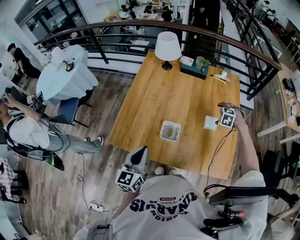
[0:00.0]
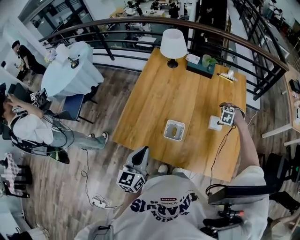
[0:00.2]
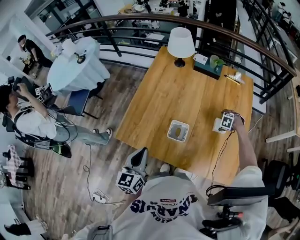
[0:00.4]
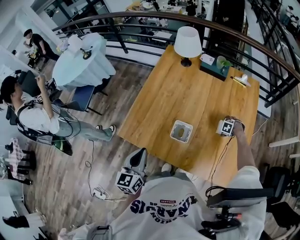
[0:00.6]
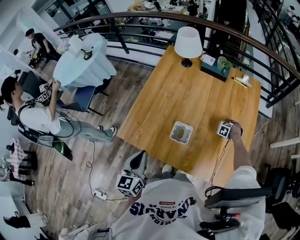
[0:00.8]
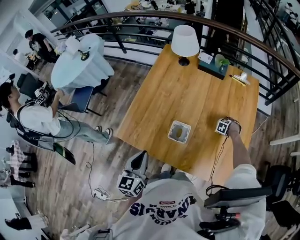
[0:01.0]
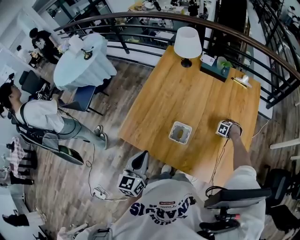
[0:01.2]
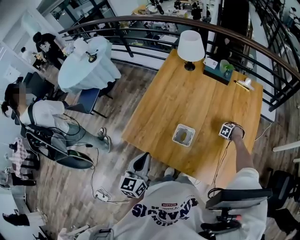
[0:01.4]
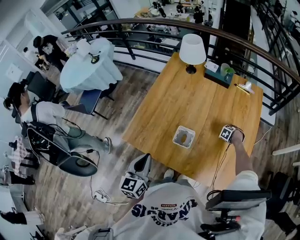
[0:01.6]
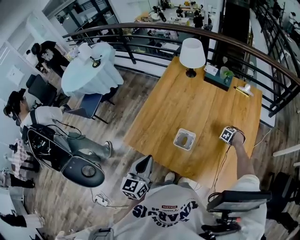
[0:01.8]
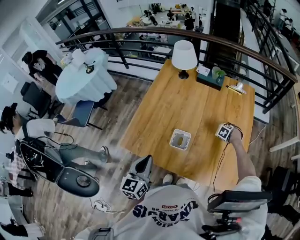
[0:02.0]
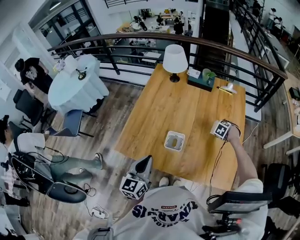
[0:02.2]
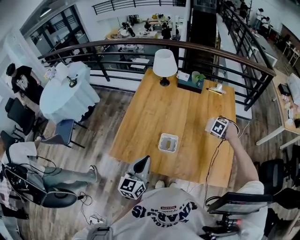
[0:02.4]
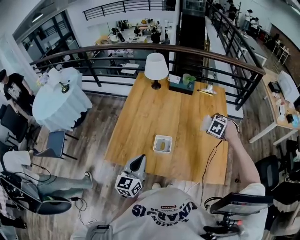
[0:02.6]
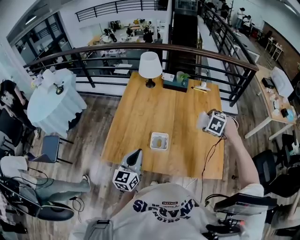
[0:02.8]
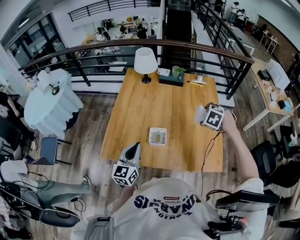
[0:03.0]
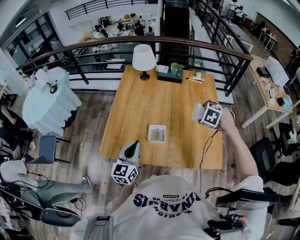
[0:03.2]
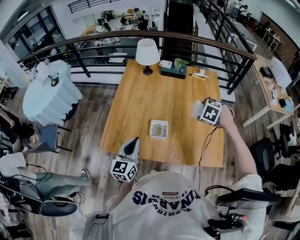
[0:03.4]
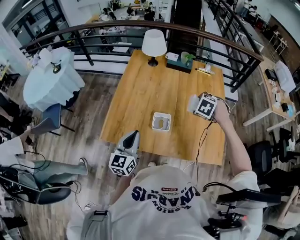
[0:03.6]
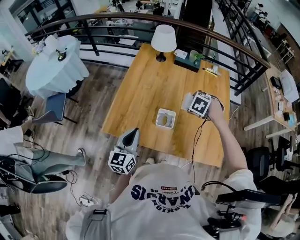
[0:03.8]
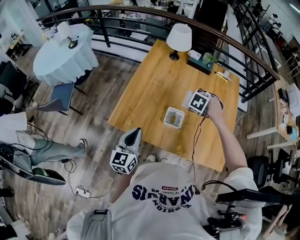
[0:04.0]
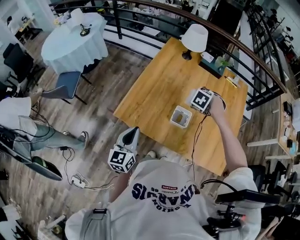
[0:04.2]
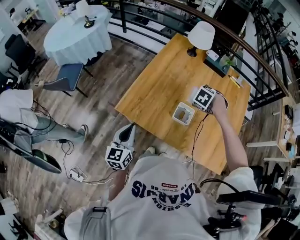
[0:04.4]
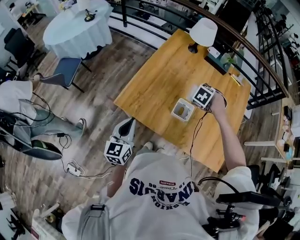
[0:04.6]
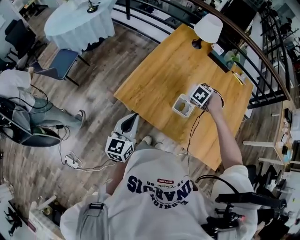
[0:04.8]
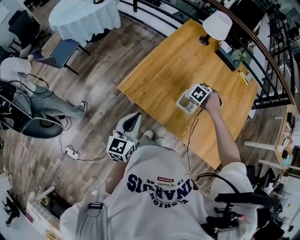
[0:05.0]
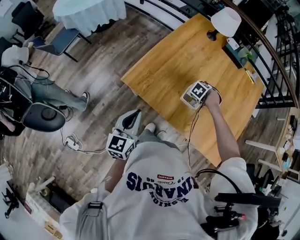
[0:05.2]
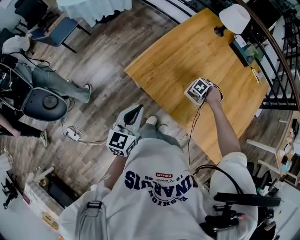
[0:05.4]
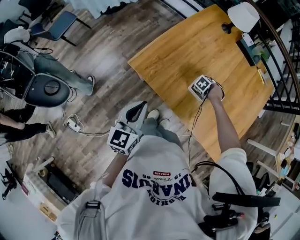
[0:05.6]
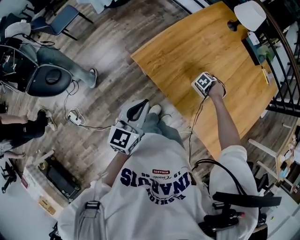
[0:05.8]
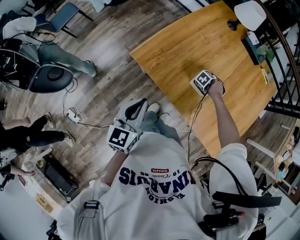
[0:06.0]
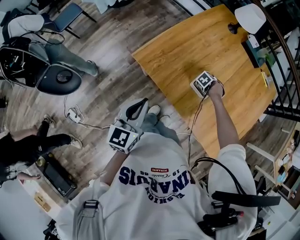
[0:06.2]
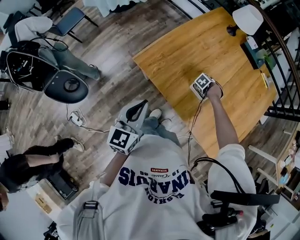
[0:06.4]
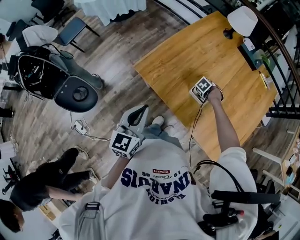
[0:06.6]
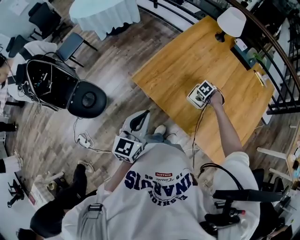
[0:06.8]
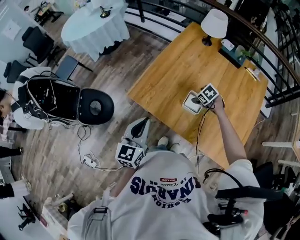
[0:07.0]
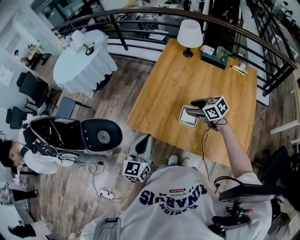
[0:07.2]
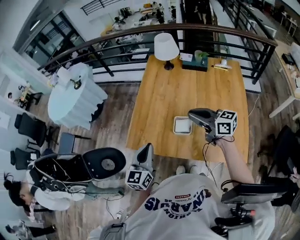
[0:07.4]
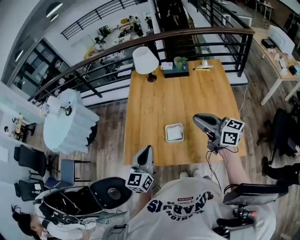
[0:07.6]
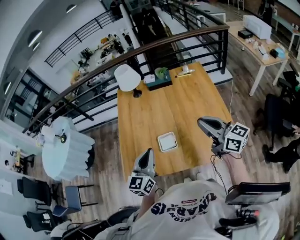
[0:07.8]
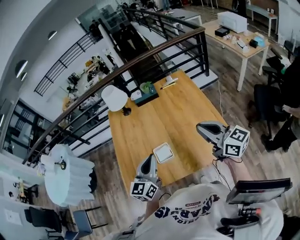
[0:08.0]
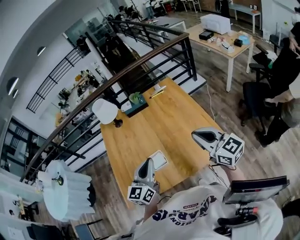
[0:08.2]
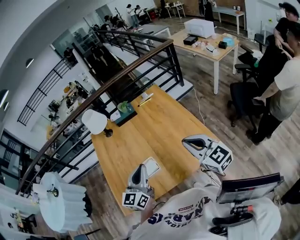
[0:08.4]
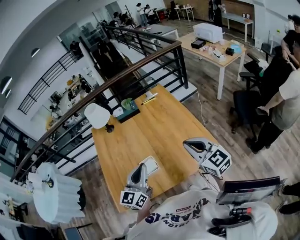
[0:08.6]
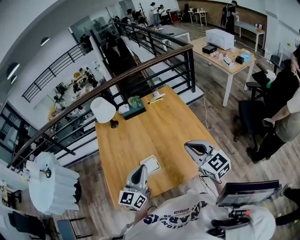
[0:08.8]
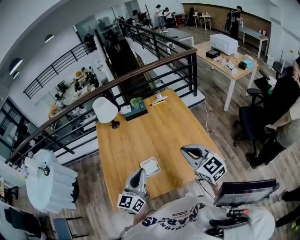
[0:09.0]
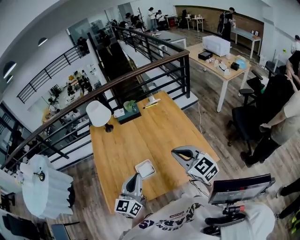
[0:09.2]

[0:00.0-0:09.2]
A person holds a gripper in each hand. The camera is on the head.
0:00.0 to 0:01.6: The right gripper shifts some 20 cm downward.
0:01.6 to 0:03.0: The left gripper swivels roughly 20 degrees. The right gripper shifts some 35 cm upward, and swivels about 20 degrees.
0:03.0 to 0:04.6: The right gripper moves approximately 30 cm, while the left gripper moves about 15 cm, and swivels roughly 20 degrees.
0:04.6 to 0:06.2: The right gripper is displaced downward by some 25 cm. Meanwhile the left gripper ends up approximately 5 cm from where it was.
0:06.2 to 0:07.6: The right gripper is displaced upward by some 50 cm, points its fingers about 90 degrees further upward, and closes its fingers; the left gripper moves some 20 cm, and turns by some 30 degrees.
0:07.6 to 0:09.2: The right gripper turns by some 50 degrees. Meanwhile the left gripper swivels some 20 degrees.

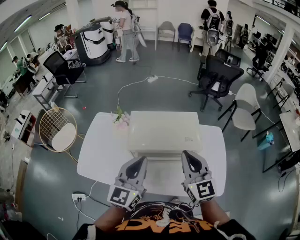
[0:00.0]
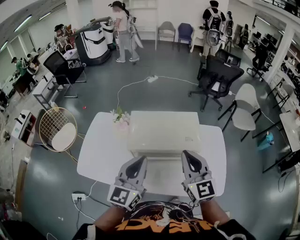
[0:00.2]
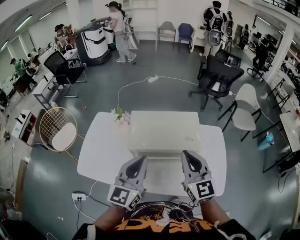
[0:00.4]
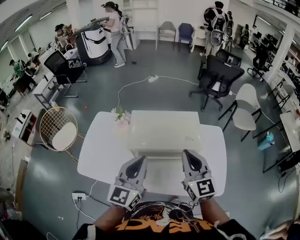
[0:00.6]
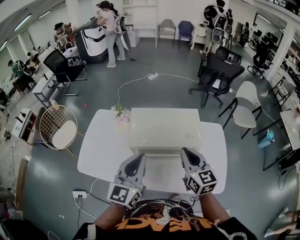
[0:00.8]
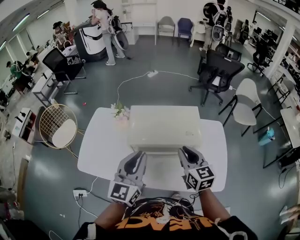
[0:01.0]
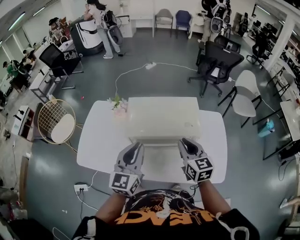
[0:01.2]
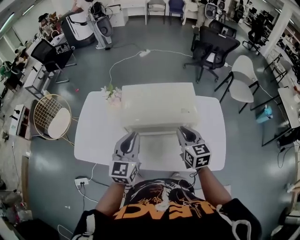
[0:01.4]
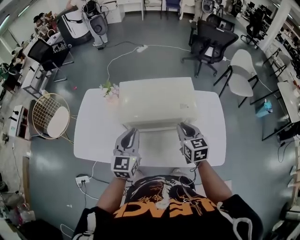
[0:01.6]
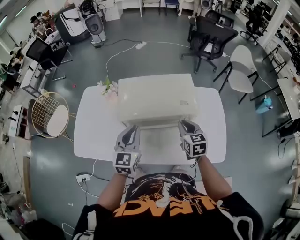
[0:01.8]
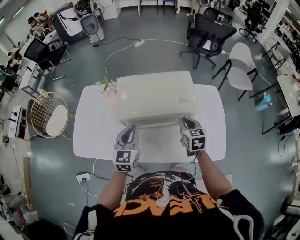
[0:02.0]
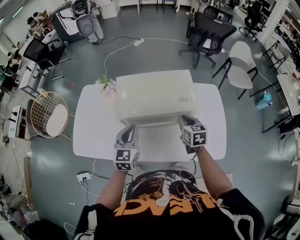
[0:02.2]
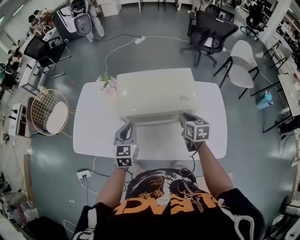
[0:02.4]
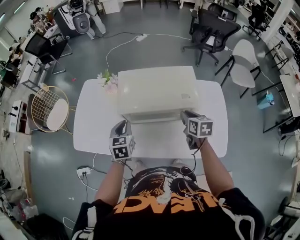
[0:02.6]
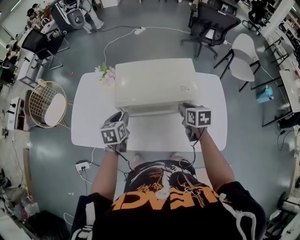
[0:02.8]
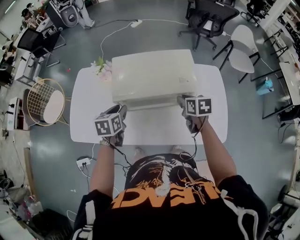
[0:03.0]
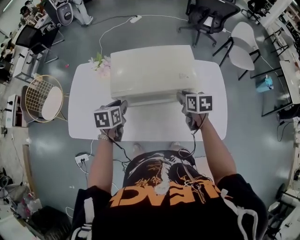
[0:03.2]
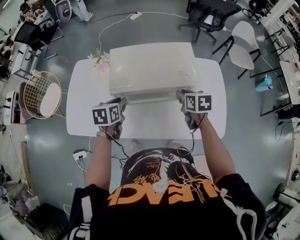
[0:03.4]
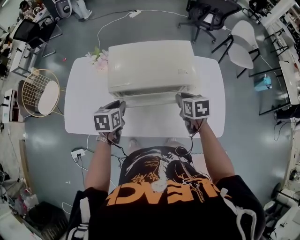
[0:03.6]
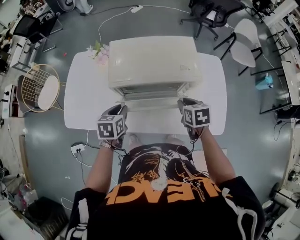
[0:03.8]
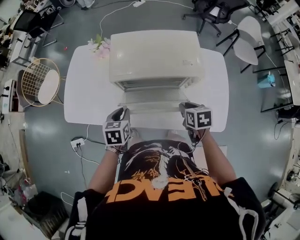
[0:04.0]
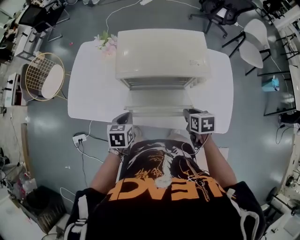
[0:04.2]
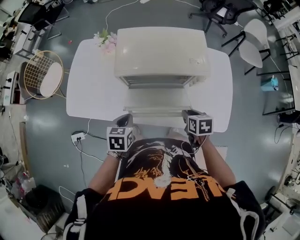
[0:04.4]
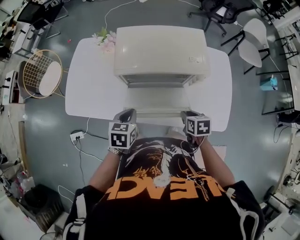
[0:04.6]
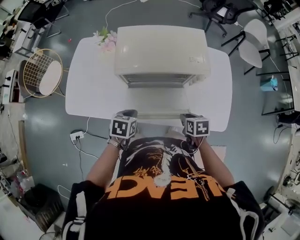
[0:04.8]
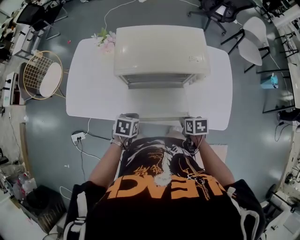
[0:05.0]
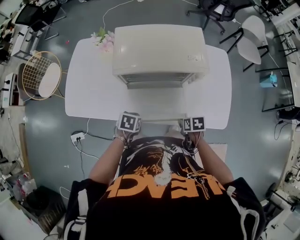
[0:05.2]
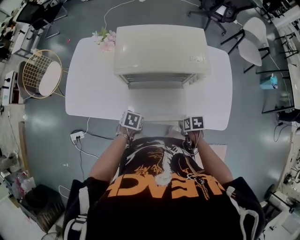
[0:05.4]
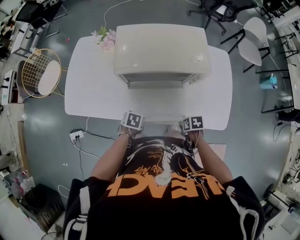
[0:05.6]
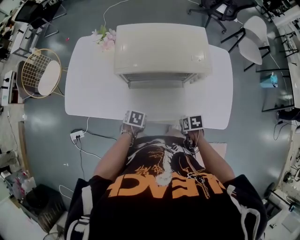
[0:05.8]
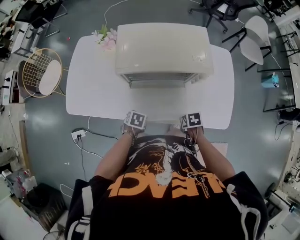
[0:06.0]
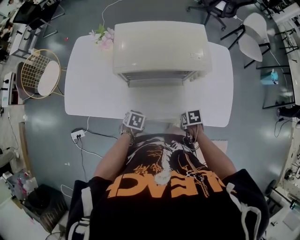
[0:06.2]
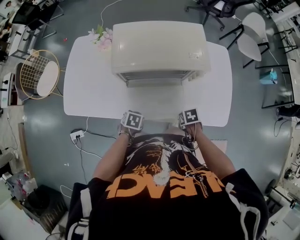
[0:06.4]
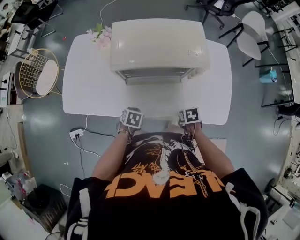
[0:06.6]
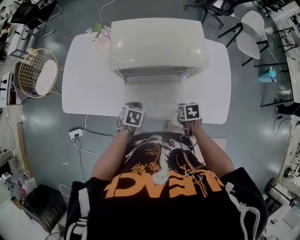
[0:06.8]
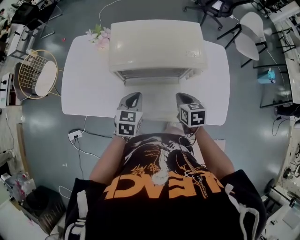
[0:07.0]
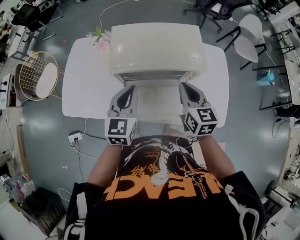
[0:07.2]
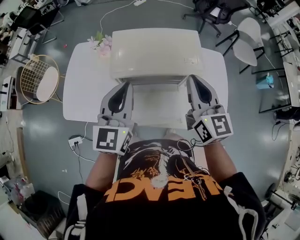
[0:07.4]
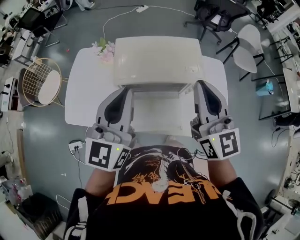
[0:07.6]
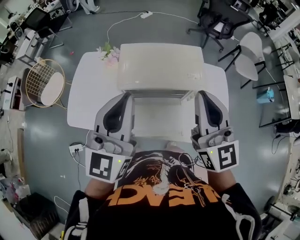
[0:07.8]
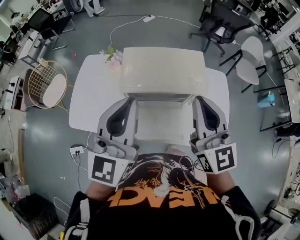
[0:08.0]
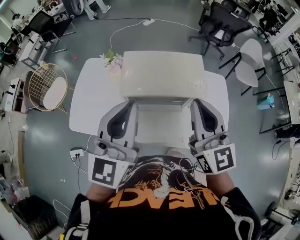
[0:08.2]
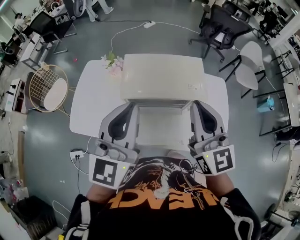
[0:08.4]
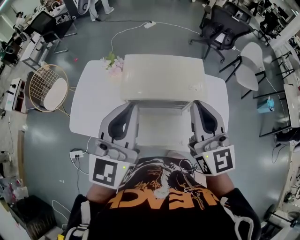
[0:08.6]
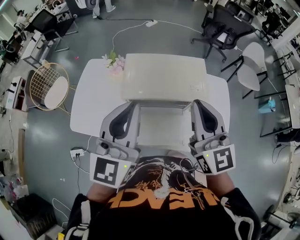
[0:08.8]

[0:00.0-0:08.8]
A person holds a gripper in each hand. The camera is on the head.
0:00.0 to 0:01.4: Both grippers travel together downward, approximately 10 cm. The right gripper turns by some 20 degrees.
0:01.4 to 0:03.0: The right gripper is displaced downward by approximately 10 cm, and changes its angle by approximately 30 degrees, while the left gripper goes approximately 15 cm downward and forward, and tips its fingers downward by some 30 degrees.
0:03.0 to 0:04.4: Both grippers move backward and downward, about 15 cm. The left gripper closes its fingers.
0:04.4 to 0:05.8: Both grippers move downward, some 15 cm. The left gripper rotates roughly 30 degrees. The right gripper turns by roughly 20 degrees.
0:05.8 to 0:07.4: The two grippers go approximately 40 cm upward. The right gripper tips its fingers upward by some 70 degrees, while the left gripper points its fingers roughly 70 degrees further upward.
0:07.4 to 0:08.8: Both grippers travel together upward, approximately 10 cm.

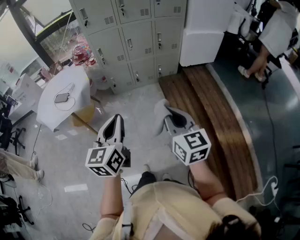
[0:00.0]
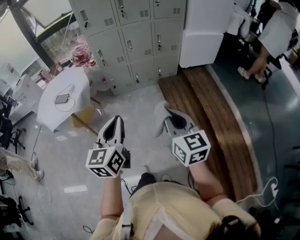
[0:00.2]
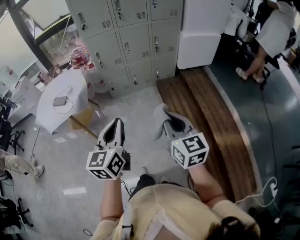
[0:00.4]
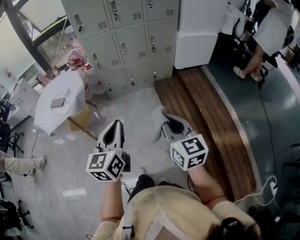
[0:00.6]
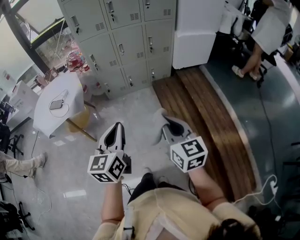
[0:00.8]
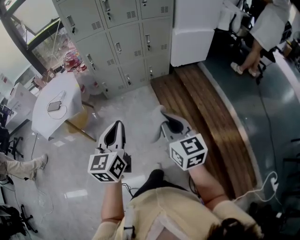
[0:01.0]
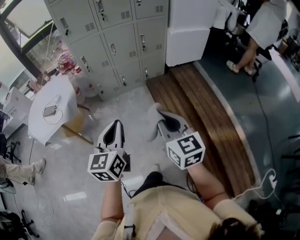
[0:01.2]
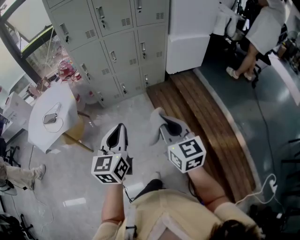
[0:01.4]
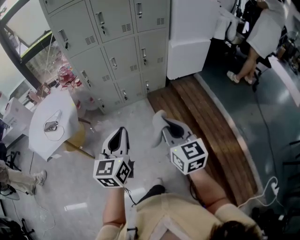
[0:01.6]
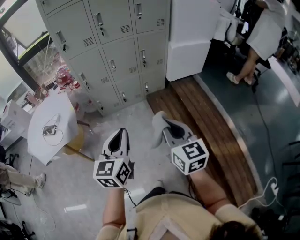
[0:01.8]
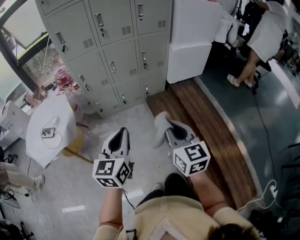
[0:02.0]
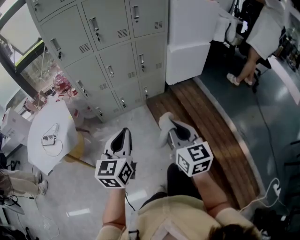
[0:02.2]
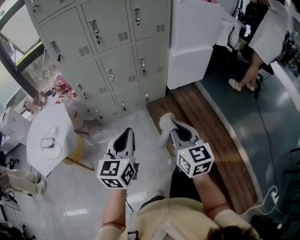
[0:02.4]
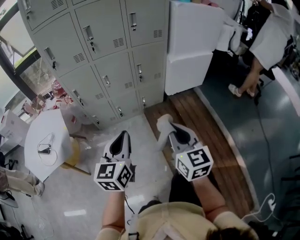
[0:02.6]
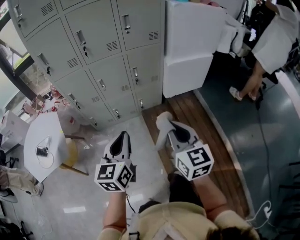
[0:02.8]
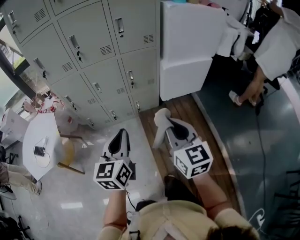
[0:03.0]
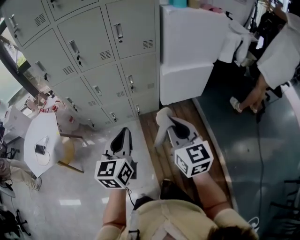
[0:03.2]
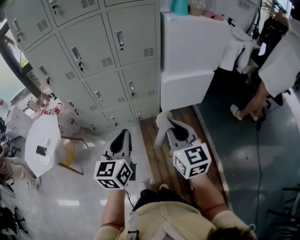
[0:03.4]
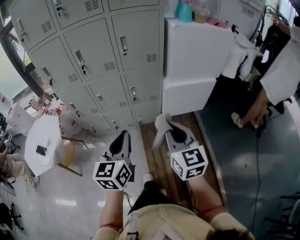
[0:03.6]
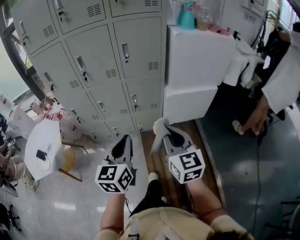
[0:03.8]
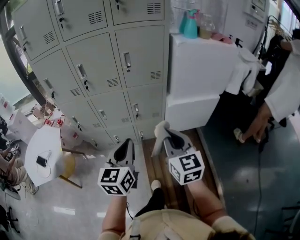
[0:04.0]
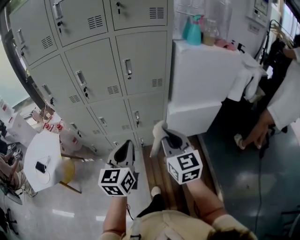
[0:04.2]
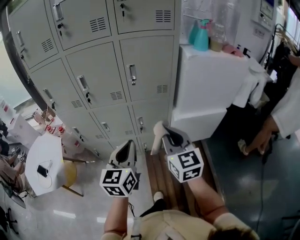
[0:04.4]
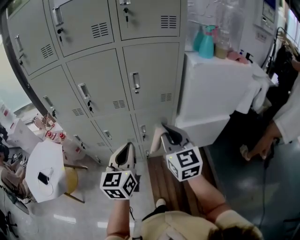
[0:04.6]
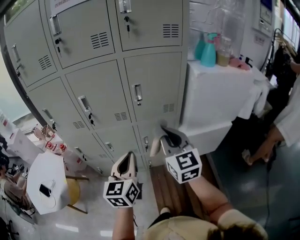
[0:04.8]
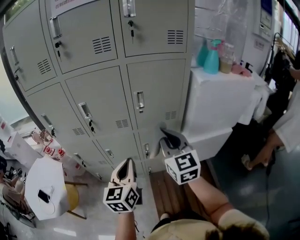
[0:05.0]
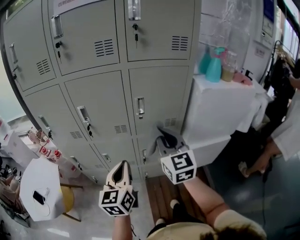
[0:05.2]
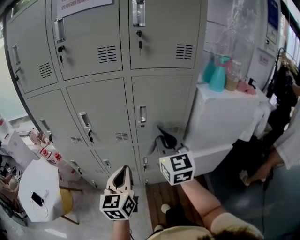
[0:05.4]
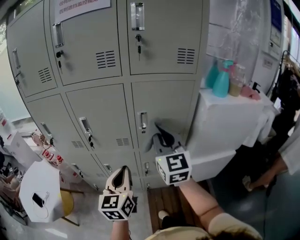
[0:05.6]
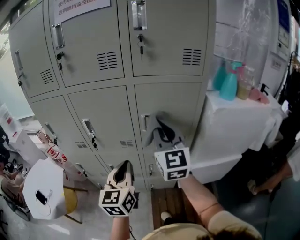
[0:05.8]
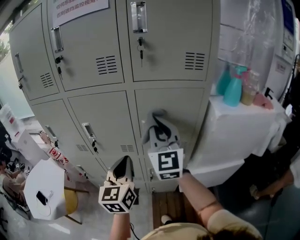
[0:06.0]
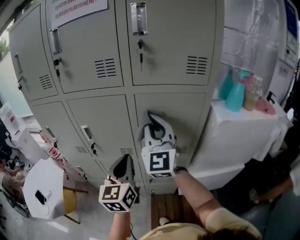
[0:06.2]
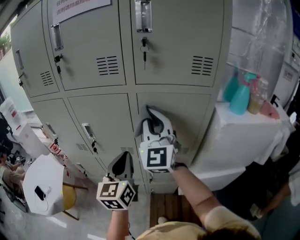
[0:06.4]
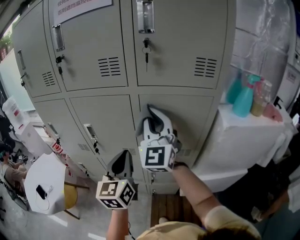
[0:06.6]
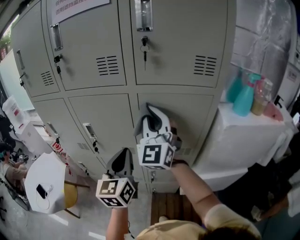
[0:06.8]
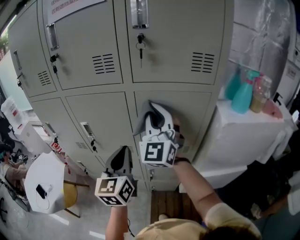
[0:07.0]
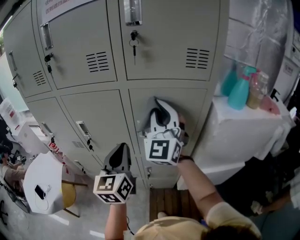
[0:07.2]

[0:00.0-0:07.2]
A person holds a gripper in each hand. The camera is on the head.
0:00.0 to 0:01.4: The left gripper heads to the right and forward, covering some 10 cm. The right gripper changes place by some 5 cm.
0:01.4 to 0:02.8: Both grippers move forward and to the right, approximately 25 cm.
0:02.8 to 0:04.4: The right gripper moves forward and upward, some 30 cm. Meanwhile the left gripper moves forward, to the right and upward, some 30 cm.
0:04.4 to 0:05.8: The left gripper goes about 20 cm forward; the right gripper travels forward and upward by about 30 cm.
0:05.8 to 0:07.2: The left gripper heads forward and upward, covering approximately 10 cm. The right gripper is displaced forward by some 10 cm, and rotates about 30 degrees.
